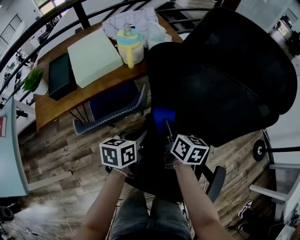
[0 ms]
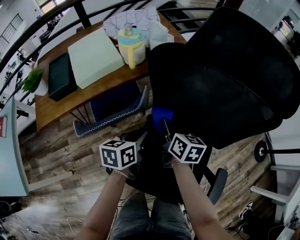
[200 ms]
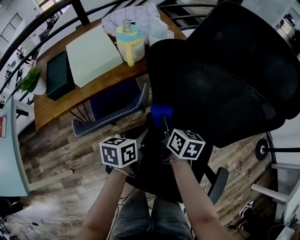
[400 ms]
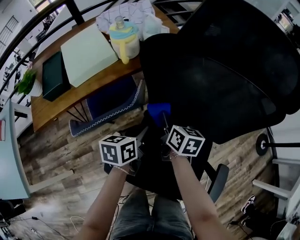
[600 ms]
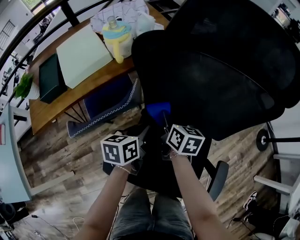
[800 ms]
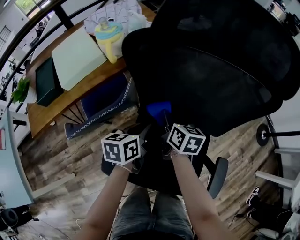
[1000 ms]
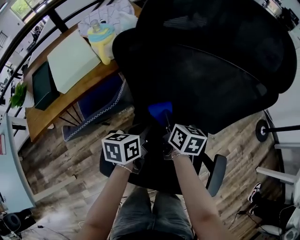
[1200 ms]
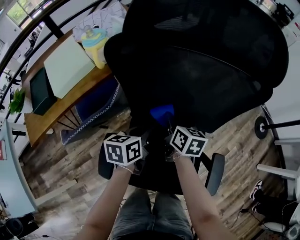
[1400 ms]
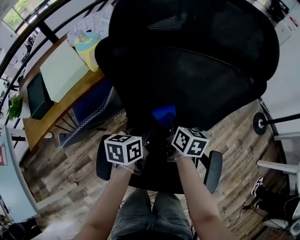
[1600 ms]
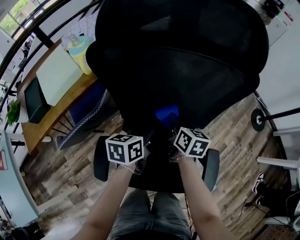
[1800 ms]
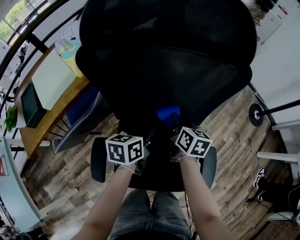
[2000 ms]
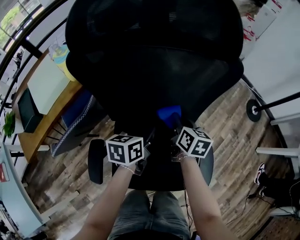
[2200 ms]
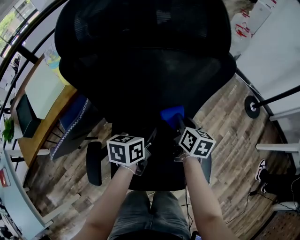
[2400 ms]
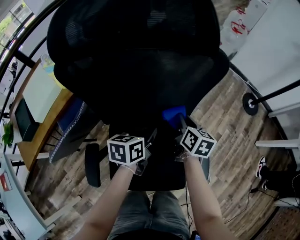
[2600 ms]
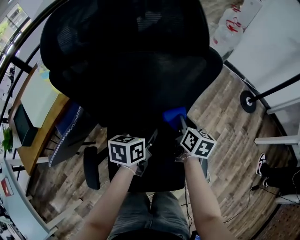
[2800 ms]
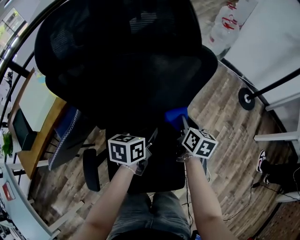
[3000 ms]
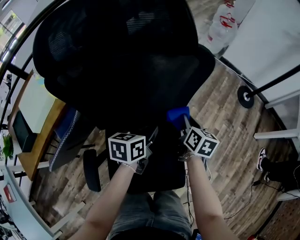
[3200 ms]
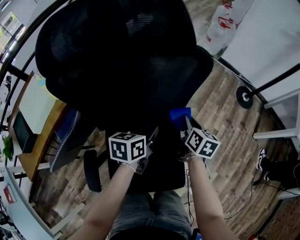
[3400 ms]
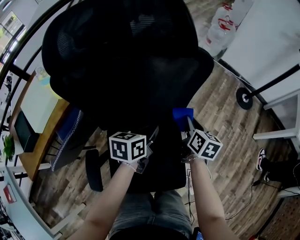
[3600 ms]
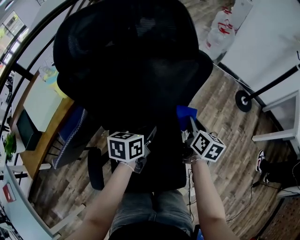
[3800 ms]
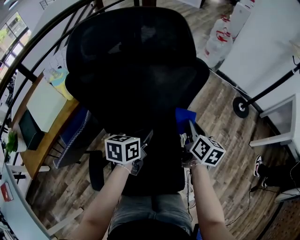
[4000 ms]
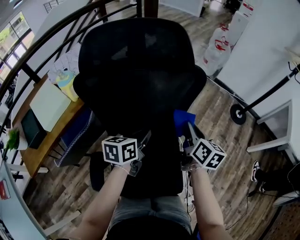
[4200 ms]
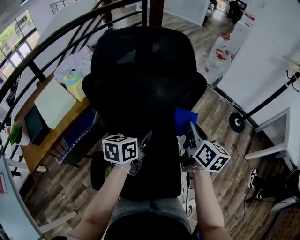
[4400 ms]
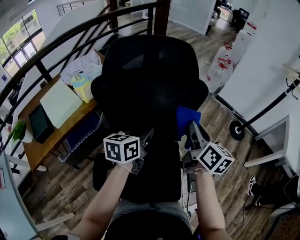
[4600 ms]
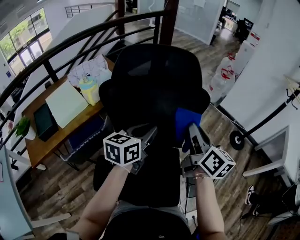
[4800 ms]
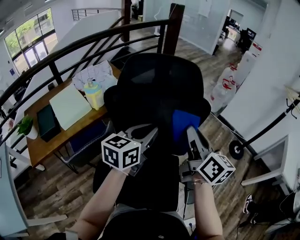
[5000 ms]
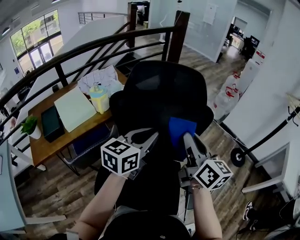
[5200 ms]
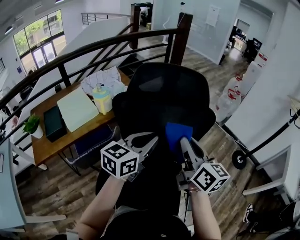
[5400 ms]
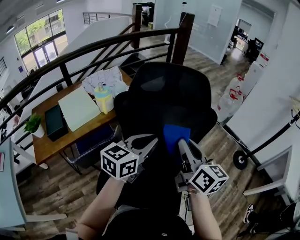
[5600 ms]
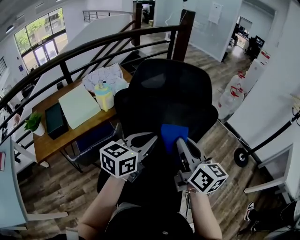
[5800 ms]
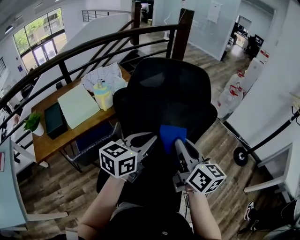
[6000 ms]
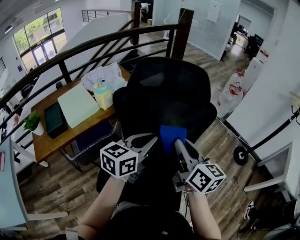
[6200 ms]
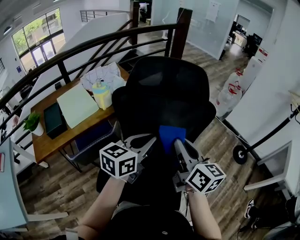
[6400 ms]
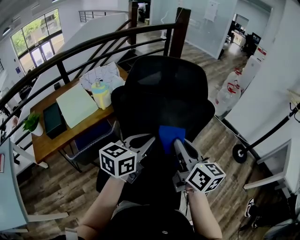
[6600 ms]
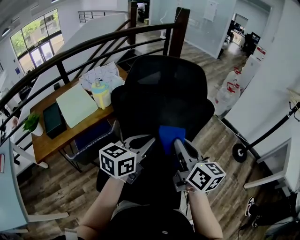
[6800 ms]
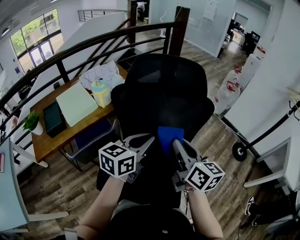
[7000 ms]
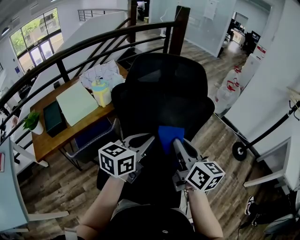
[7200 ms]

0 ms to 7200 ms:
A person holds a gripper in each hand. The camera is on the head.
0 ms to 1400 ms: The grippers both shift to the right by some 10 cm.
1400 ms to 2800 ms: The grippers both shift to the right by about 20 cm. The right gripper changes its angle by approximately 20 degrees.
2800 ms to 4400 ms: The right gripper moves upward, approximately 20 cm, while the left gripper moves upward, roughly 15 cm.
4400 ms to 5800 ms: The left gripper moves upward, approximately 15 cm, and swivels some 20 degrees. Meanwhile the right gripper is displaced to the left, upward and backward by approximately 20 cm, and swivels some 30 degrees.
5800 ms to 7200 ms: The grippers move only a little.

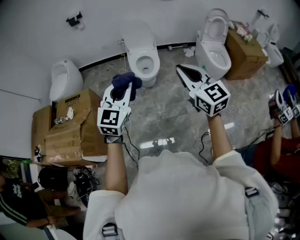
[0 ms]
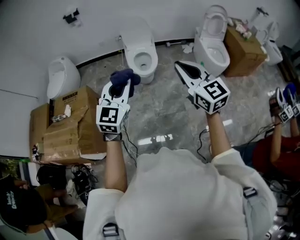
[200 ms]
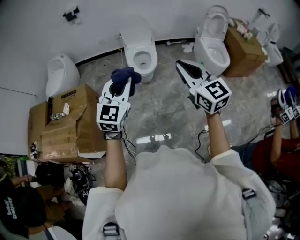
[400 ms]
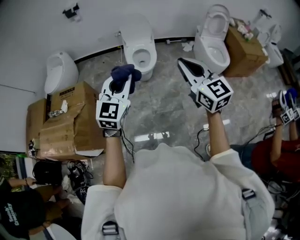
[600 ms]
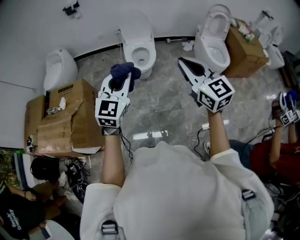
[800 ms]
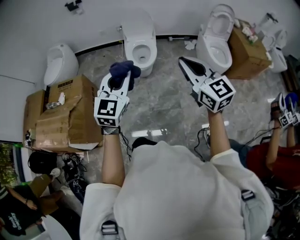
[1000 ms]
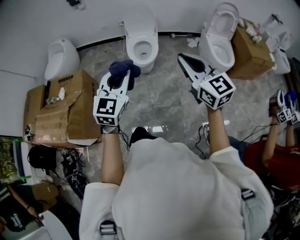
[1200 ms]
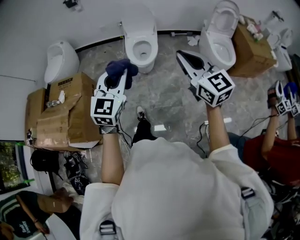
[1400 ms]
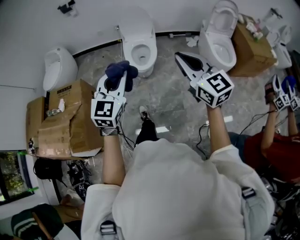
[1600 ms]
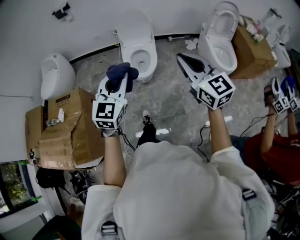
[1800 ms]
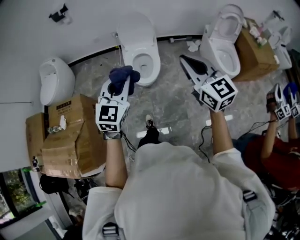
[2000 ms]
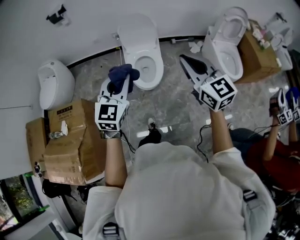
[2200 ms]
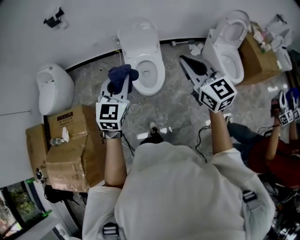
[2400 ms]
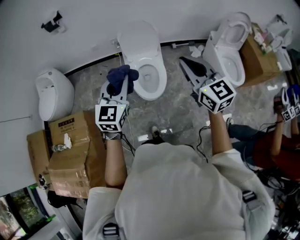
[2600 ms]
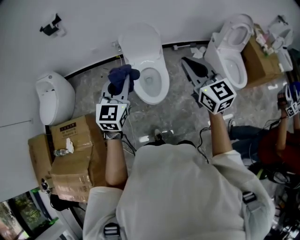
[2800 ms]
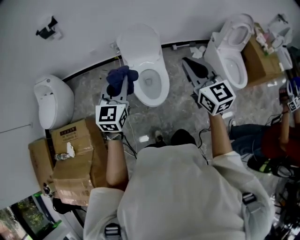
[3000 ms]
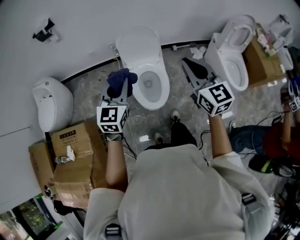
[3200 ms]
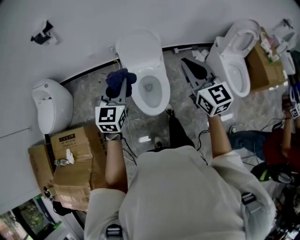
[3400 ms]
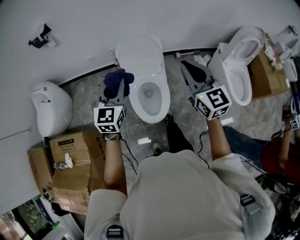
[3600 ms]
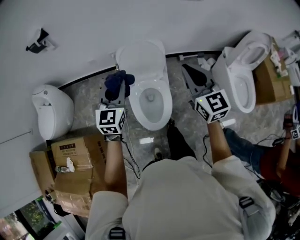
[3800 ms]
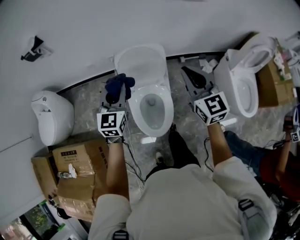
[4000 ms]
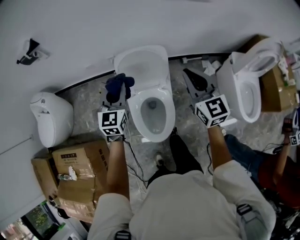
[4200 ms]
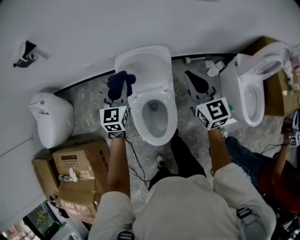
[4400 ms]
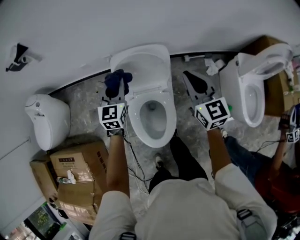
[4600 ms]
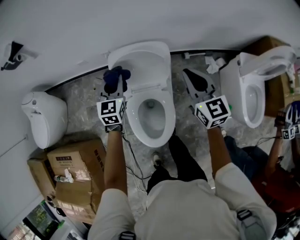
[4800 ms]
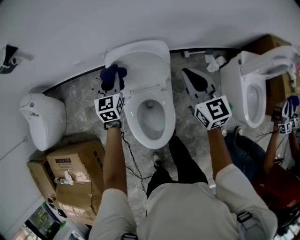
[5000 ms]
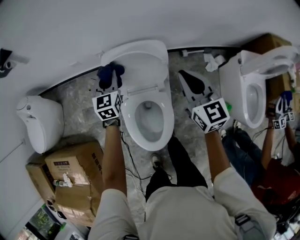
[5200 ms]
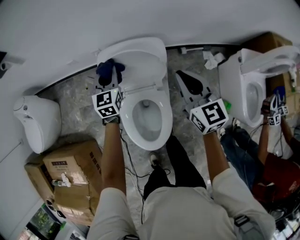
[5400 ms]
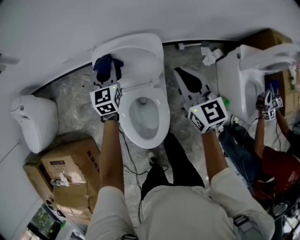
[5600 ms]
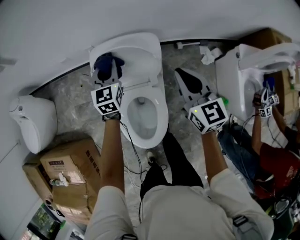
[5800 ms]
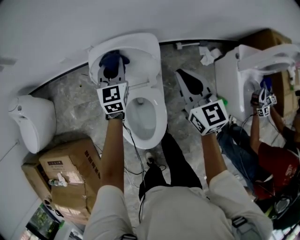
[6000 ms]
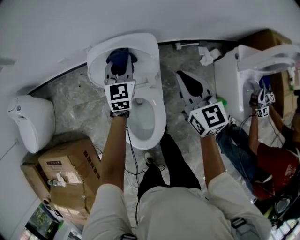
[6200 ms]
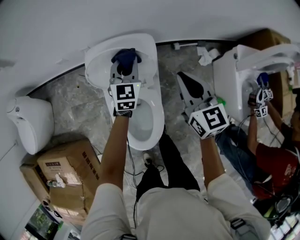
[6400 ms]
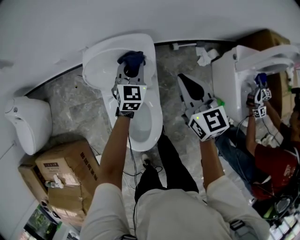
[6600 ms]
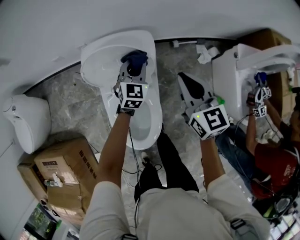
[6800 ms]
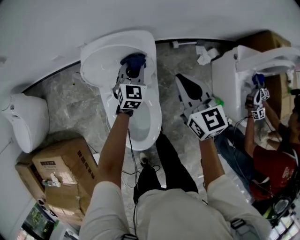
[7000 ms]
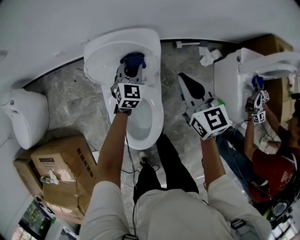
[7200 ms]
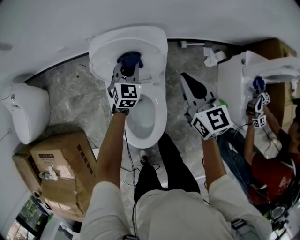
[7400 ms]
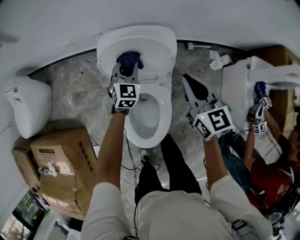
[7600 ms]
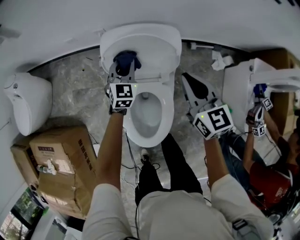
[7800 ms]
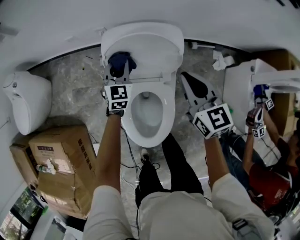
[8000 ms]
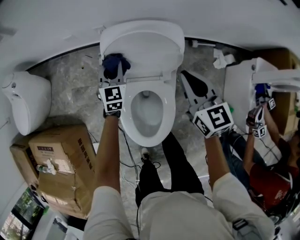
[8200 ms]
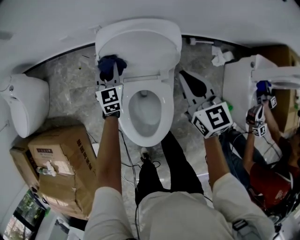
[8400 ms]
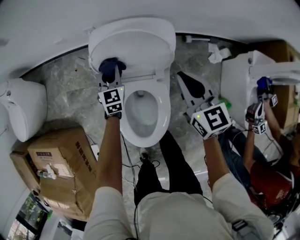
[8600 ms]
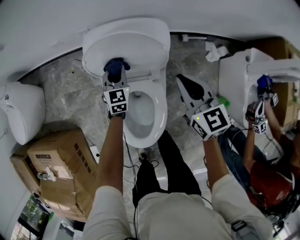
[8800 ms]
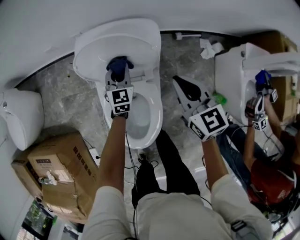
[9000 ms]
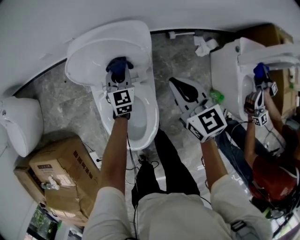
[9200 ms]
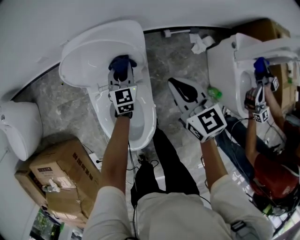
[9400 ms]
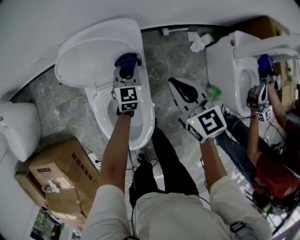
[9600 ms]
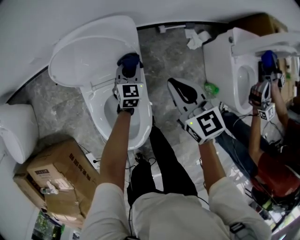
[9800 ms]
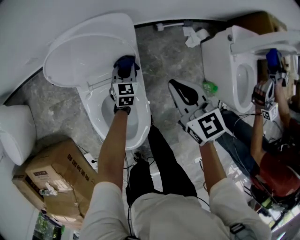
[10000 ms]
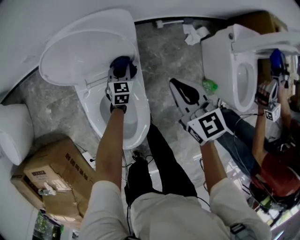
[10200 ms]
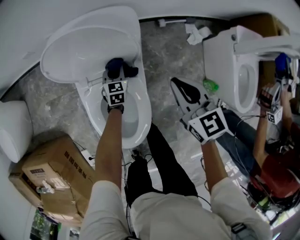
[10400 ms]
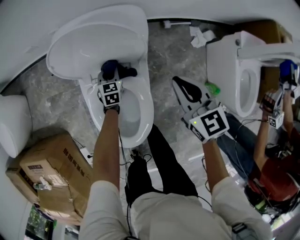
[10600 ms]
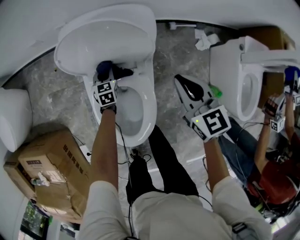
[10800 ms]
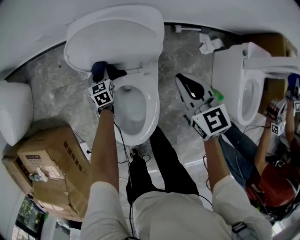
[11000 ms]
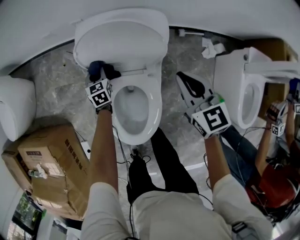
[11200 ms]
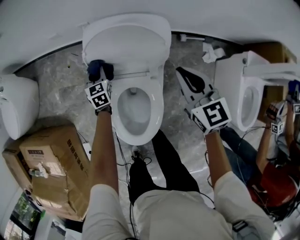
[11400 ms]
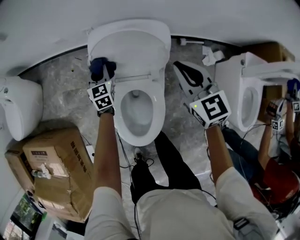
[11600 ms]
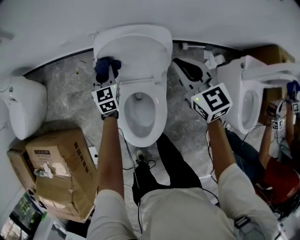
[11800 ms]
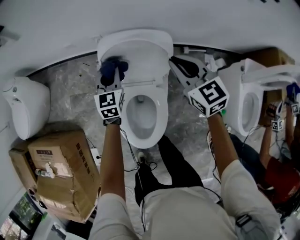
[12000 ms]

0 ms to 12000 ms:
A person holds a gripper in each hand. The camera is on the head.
0 ms to 1600 ms: Both grippers move forward and to the right, approximately 15 cm.
1600 ms to 3000 ms: Both grippers move forward, roughly 40 cm.
3000 ms to 4400 ms: Both grippers move forward and downward, about 40 cm.
4400 ms to 6000 ms: The right gripper moves downward and forward, some 15 cm. The left gripper travels downward, forward and to the right by some 20 cm.
6000 ms to 7600 ms: The left gripper travels downward by about 10 cm, and reaches approximately 10 cm to the right, then returns, while the right gripper ends up about 5 cm from where it was.
7600 ms to 9000 ms: The left gripper shifts some 5 cm downward, and travels to the left and back again, some 10 cm each way, while the right gripper changes place by about 5 cm.
9000 ms to 10400 ms: The left gripper travels downward by approximately 15 cm. Meanwhile the right gripper travels to the right by approximately 5 cm.
10400 ms to 12000 ms: The left gripper heads upward and to the left, covering roughly 30 cm, and rotates some 20 degrees, while the right gripper shifts about 20 cm forward, upward and to the left, and changes its angle by roughly 20 degrees.

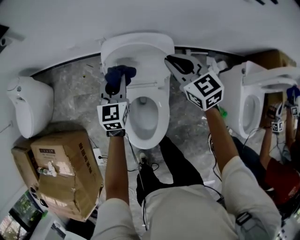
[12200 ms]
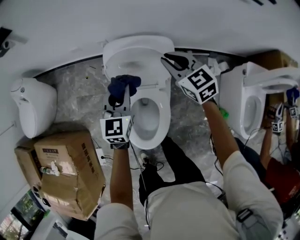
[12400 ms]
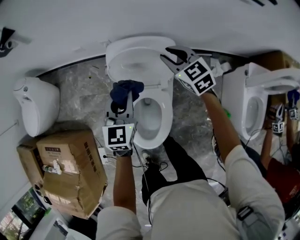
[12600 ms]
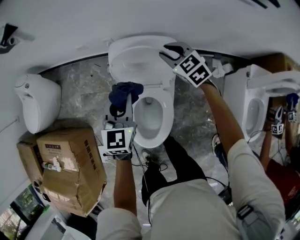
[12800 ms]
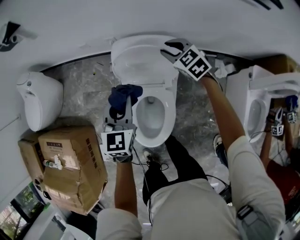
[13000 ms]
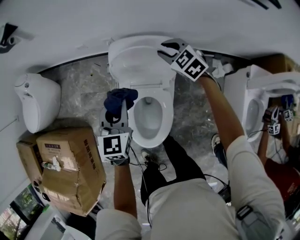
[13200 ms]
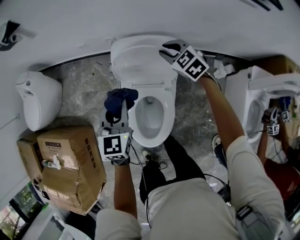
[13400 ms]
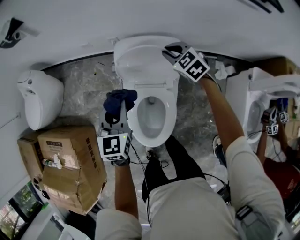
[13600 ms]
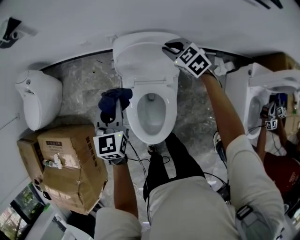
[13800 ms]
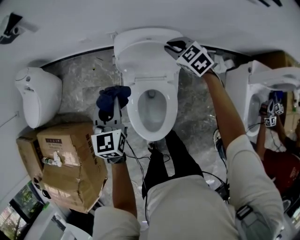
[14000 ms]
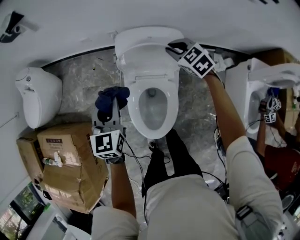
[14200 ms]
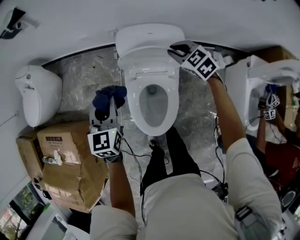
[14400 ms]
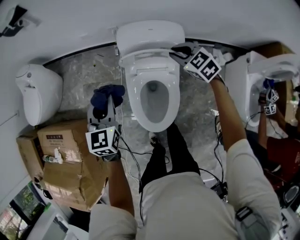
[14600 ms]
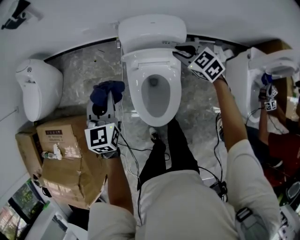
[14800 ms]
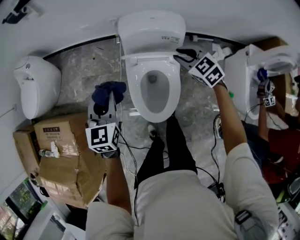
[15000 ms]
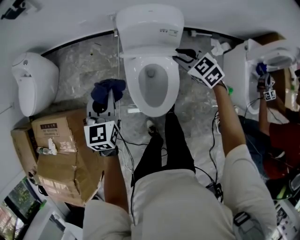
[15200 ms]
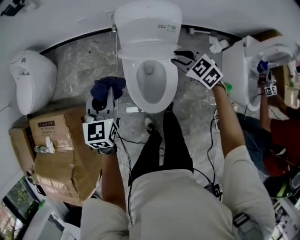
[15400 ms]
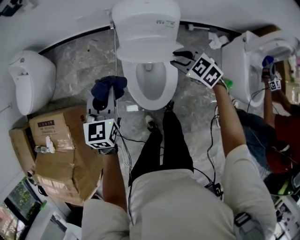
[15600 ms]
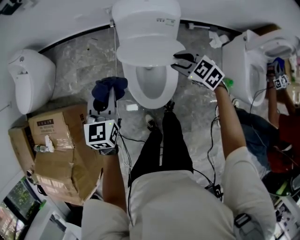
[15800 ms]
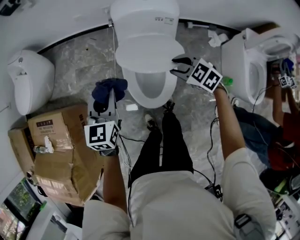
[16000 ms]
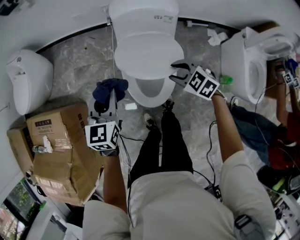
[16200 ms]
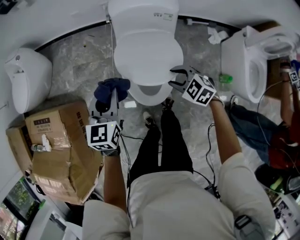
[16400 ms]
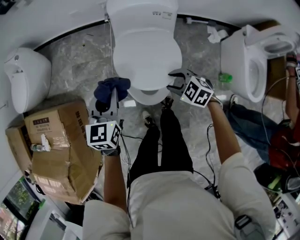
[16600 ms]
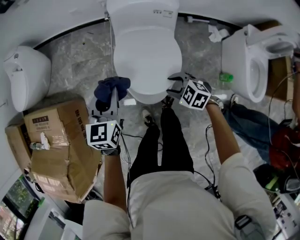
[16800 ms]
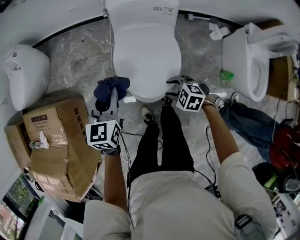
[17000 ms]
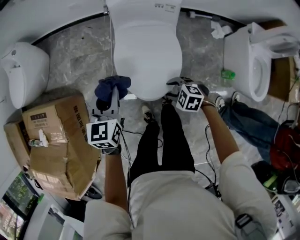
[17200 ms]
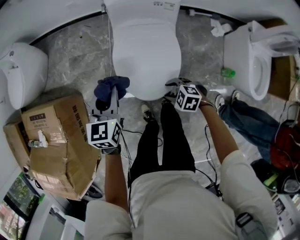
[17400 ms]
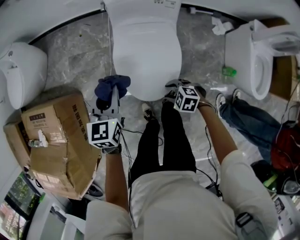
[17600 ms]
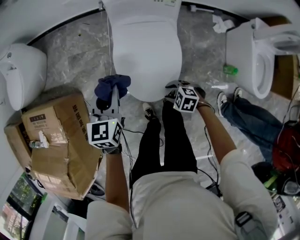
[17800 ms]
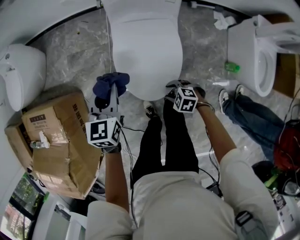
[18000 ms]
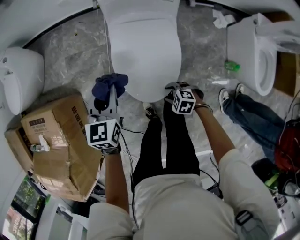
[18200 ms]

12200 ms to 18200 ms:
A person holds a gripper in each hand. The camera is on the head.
12200 ms to 13800 ms: The left gripper shifts approximately 15 cm to the left, backward and upward, while the right gripper is displaced forward and downward by about 10 cm, and turns by approximately 20 degrees.
13800 ms to 15200 ms: The left gripper travels backward and to the left by roughly 15 cm; the right gripper shifts roughly 20 cm backward.
15200 ms to 16600 ms: The right gripper moves backward, downward and to the left, roughly 20 cm. Meanwhile the left gripper heads backward and downward, covering approximately 10 cm.
16600 ms to 18200 ms: The left gripper goes some 10 cm downward. The right gripper goes roughly 20 cm downward and backward.
